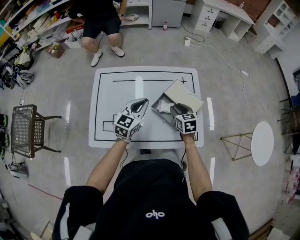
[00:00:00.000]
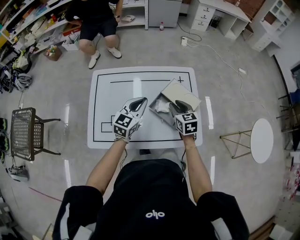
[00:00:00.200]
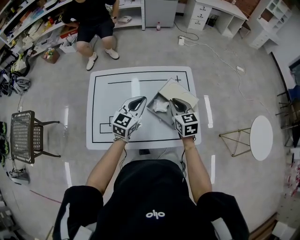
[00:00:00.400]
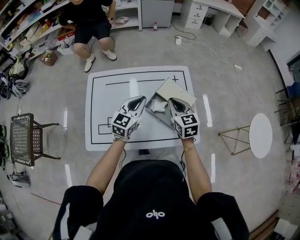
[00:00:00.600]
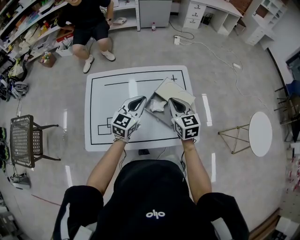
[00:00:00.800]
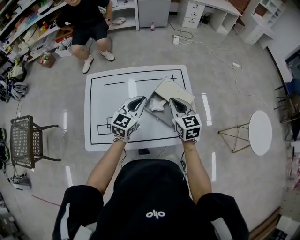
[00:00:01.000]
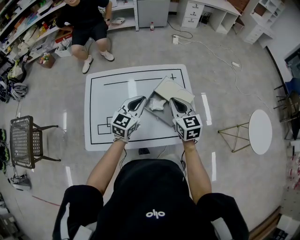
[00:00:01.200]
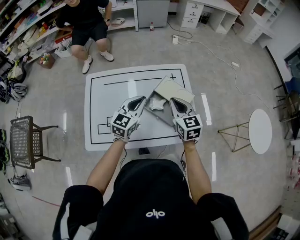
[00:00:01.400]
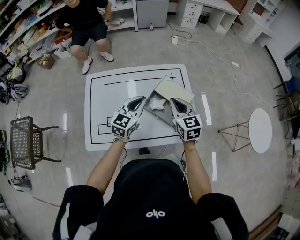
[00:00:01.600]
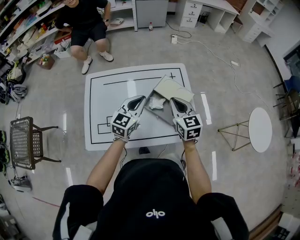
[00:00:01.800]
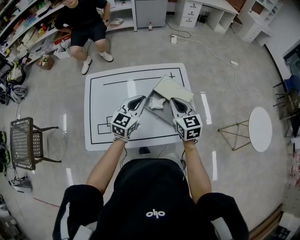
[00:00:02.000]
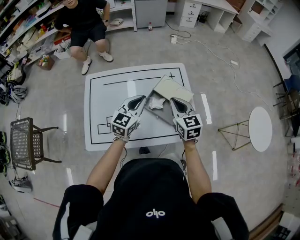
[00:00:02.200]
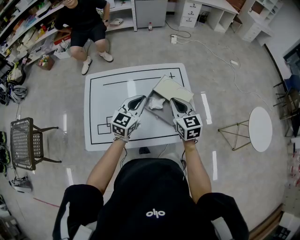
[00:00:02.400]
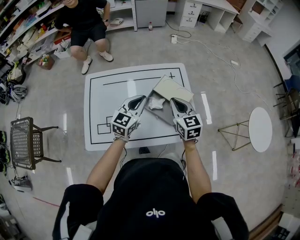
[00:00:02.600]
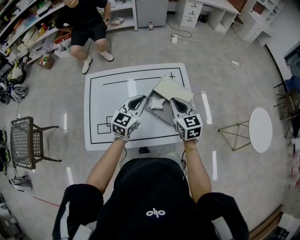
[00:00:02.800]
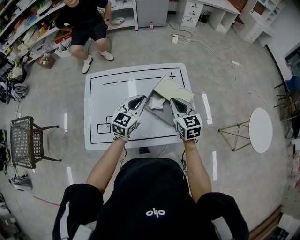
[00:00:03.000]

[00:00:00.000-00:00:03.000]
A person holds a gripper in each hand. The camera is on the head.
00:00:00.000 to 00:00:01.600: The right gripper shifts roughly 15 cm upward, and closes. The left gripper moves about 5 cm.
00:00:01.600 to 00:00:03.000: The two grippers keep their place.

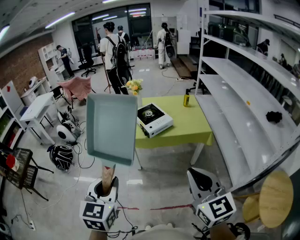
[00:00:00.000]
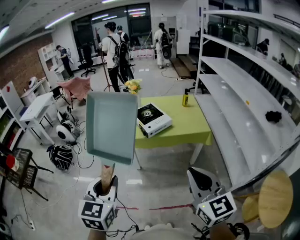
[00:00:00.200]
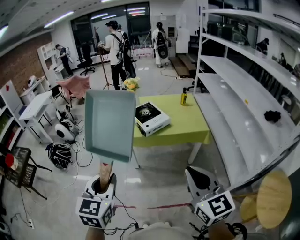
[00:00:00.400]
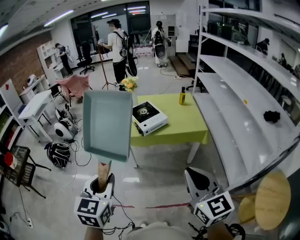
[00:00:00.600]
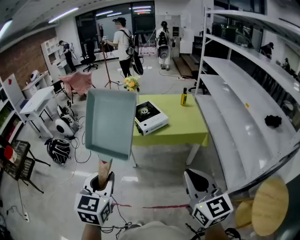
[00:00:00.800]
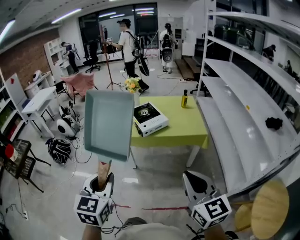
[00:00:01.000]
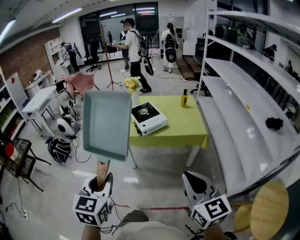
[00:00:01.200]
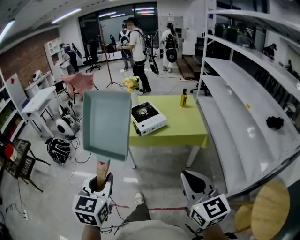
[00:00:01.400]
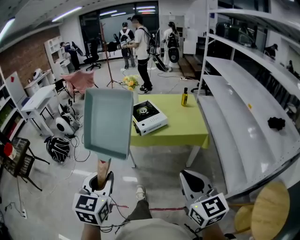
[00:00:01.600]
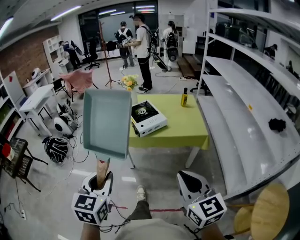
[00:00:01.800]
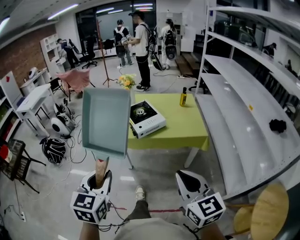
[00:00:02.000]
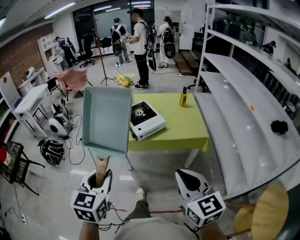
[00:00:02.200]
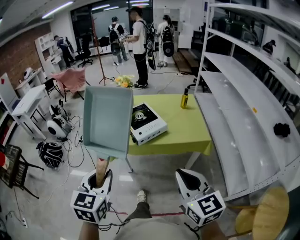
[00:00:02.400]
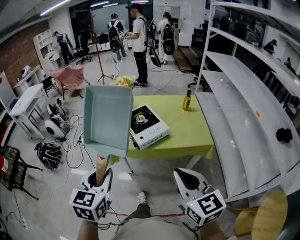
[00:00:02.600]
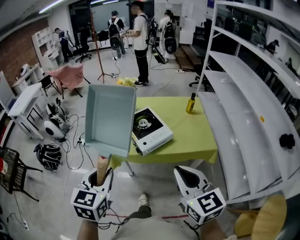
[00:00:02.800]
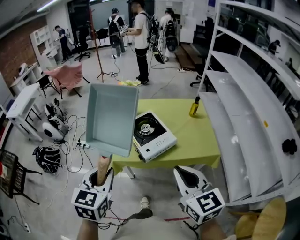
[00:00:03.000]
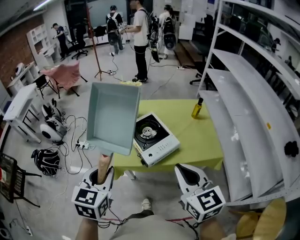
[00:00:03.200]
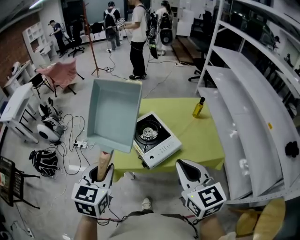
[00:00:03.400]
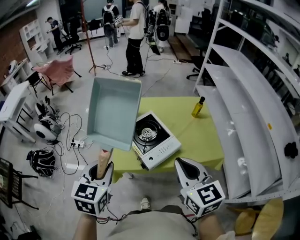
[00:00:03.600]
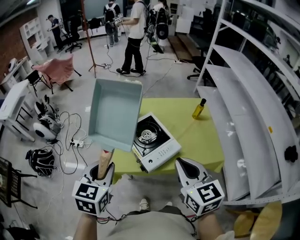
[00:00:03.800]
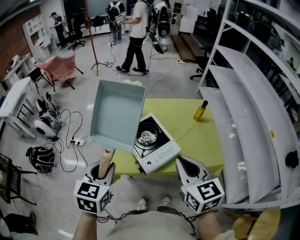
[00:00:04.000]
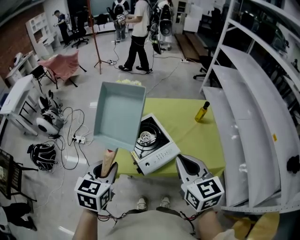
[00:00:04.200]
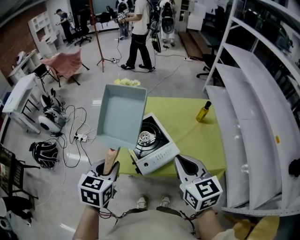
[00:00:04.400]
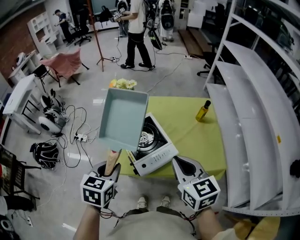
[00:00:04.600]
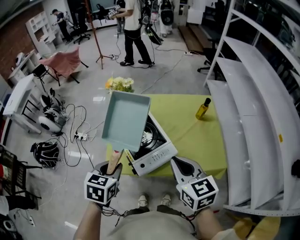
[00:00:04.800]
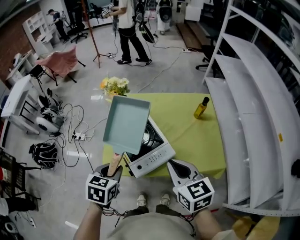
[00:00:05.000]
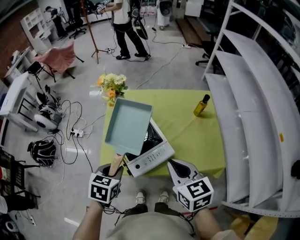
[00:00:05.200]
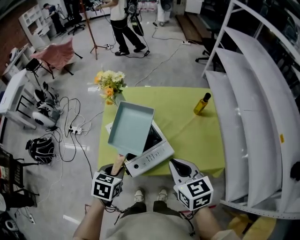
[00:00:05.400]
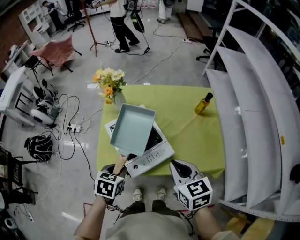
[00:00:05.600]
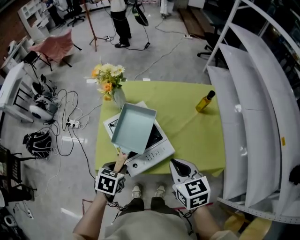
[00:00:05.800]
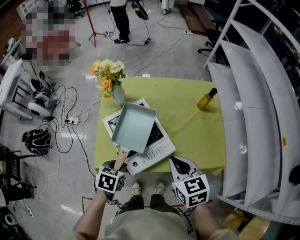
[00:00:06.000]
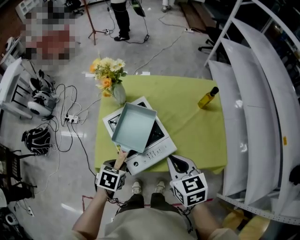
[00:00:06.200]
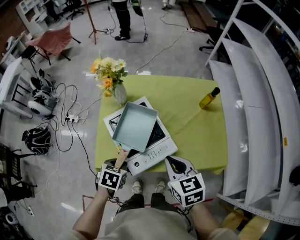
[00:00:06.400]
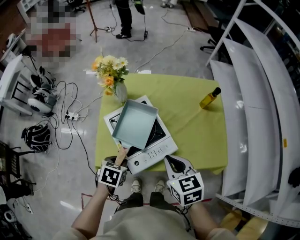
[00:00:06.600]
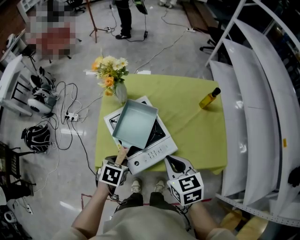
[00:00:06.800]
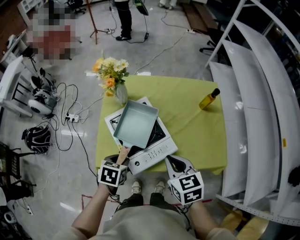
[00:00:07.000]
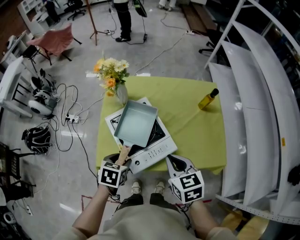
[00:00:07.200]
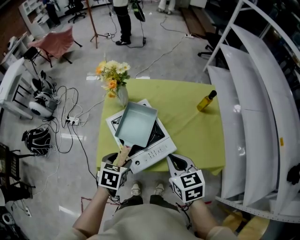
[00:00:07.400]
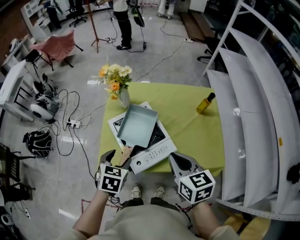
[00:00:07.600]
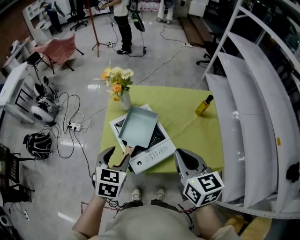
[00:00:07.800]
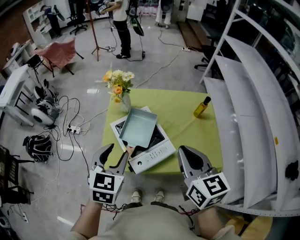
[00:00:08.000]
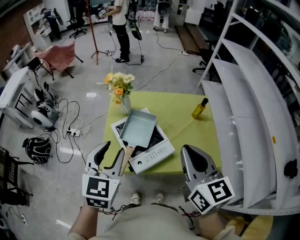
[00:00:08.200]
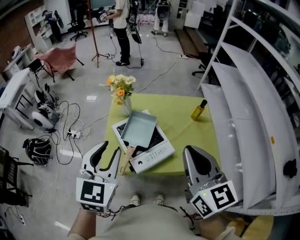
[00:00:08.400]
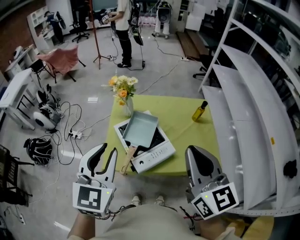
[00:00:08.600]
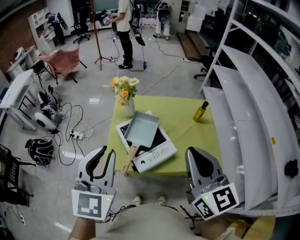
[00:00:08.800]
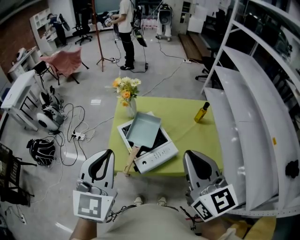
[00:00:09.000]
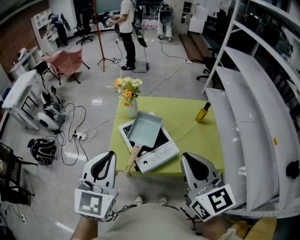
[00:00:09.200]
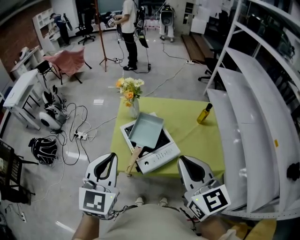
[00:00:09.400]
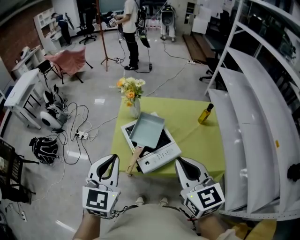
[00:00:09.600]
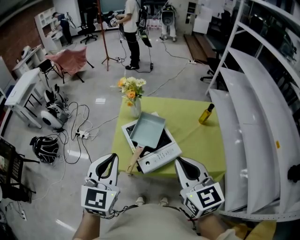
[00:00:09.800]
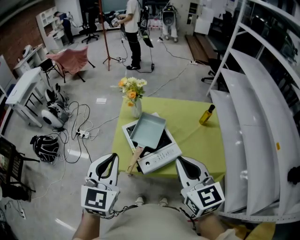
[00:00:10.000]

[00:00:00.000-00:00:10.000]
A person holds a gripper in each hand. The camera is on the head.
00:00:00.000 to 00:00:01.400: Both grippers travel together to the right, roughly 5 cm.
00:00:01.400 to 00:00:02.800: The two grippers go approximately 30 cm forward.
00:00:02.800 to 00:00:04.200: Both grippers move forward, approximately 25 cm.
00:00:04.200 to 00:00:05.800: The right gripper goes some 15 cm downward and forward. Meanwhile the left gripper moves downward, about 20 cm, and swivels roughly 30 degrees.
00:00:05.800 to 00:00:07.200: The left gripper opens up.
00:00:07.200 to 00:00:08.600: Both grippers travel together upward, some 30 cm. The left gripper points its fingers some 50 degrees further upward, and closes its fingers. The right gripper angles its fingers upward, by about 40 degrees.
00:00:08.600 to 00:00:10.000: The right gripper shifts about 10 cm downward, while the left gripper closes.

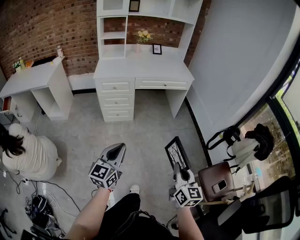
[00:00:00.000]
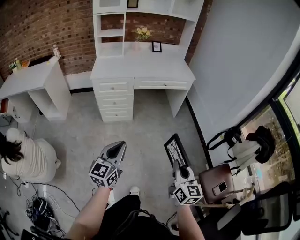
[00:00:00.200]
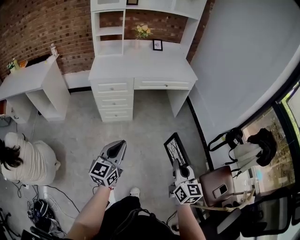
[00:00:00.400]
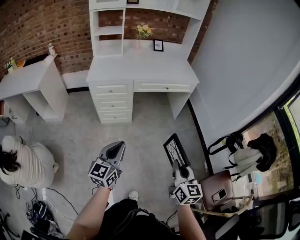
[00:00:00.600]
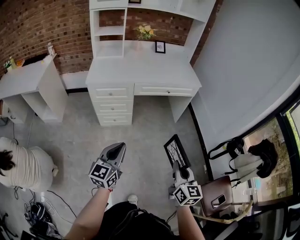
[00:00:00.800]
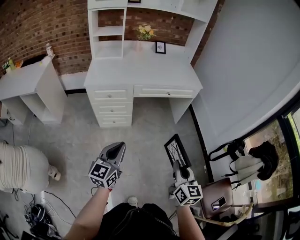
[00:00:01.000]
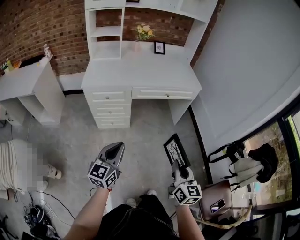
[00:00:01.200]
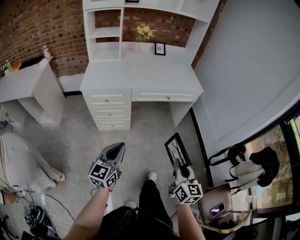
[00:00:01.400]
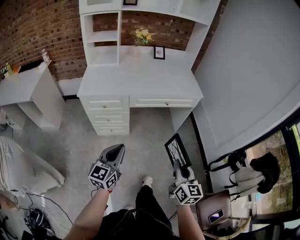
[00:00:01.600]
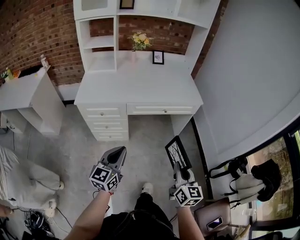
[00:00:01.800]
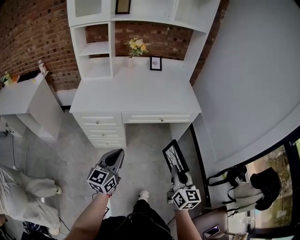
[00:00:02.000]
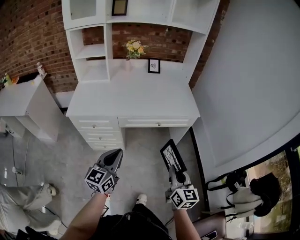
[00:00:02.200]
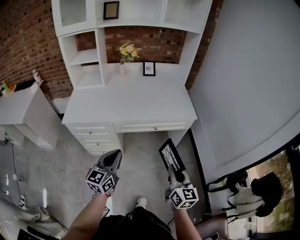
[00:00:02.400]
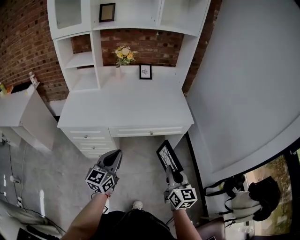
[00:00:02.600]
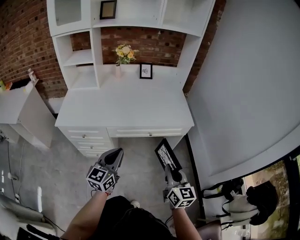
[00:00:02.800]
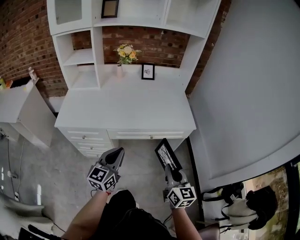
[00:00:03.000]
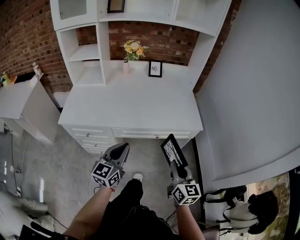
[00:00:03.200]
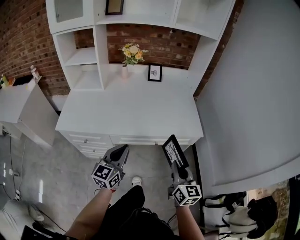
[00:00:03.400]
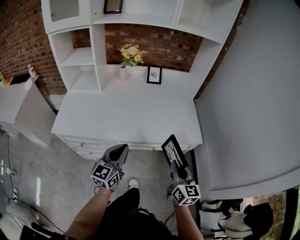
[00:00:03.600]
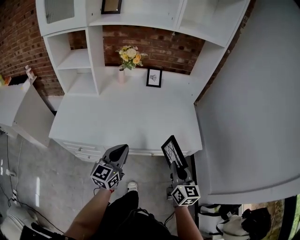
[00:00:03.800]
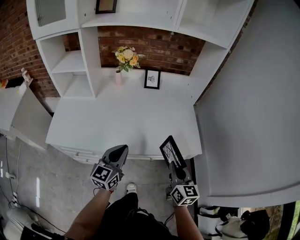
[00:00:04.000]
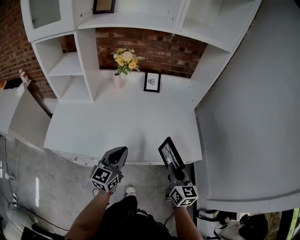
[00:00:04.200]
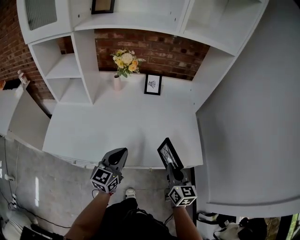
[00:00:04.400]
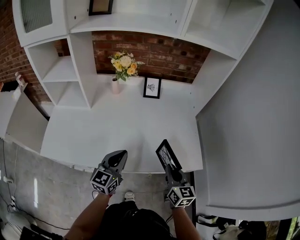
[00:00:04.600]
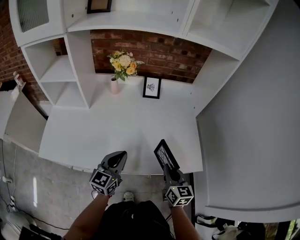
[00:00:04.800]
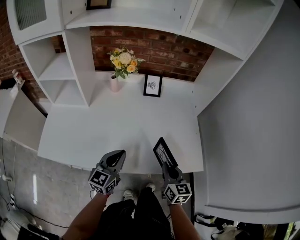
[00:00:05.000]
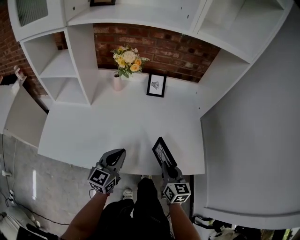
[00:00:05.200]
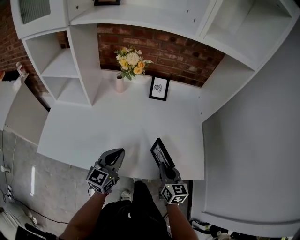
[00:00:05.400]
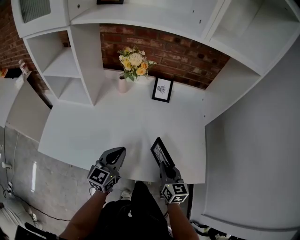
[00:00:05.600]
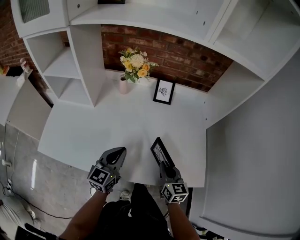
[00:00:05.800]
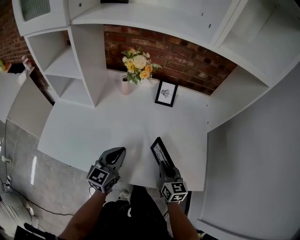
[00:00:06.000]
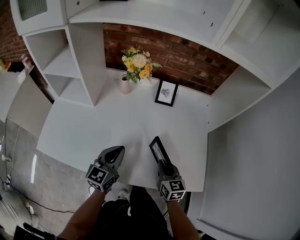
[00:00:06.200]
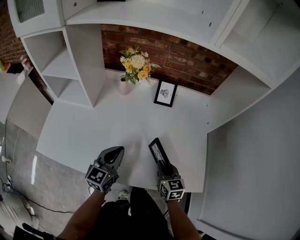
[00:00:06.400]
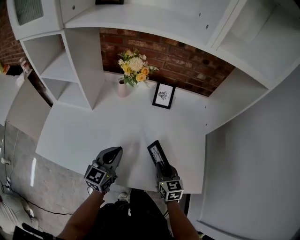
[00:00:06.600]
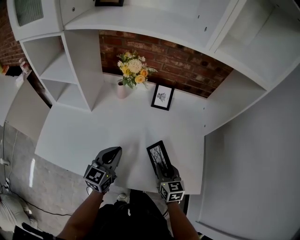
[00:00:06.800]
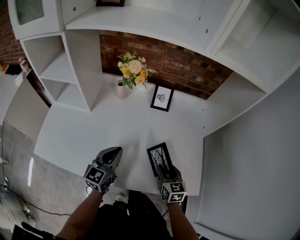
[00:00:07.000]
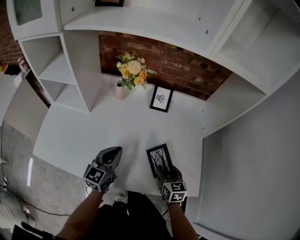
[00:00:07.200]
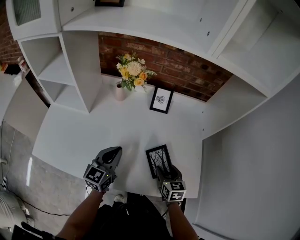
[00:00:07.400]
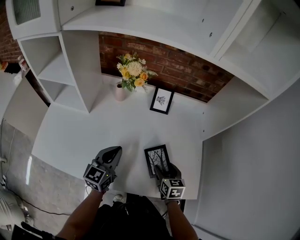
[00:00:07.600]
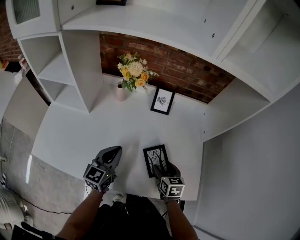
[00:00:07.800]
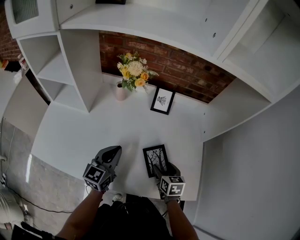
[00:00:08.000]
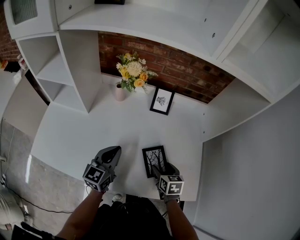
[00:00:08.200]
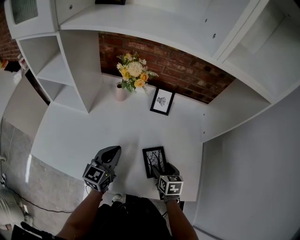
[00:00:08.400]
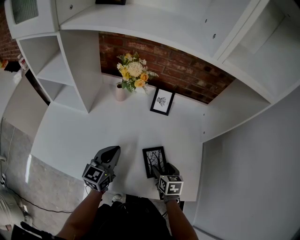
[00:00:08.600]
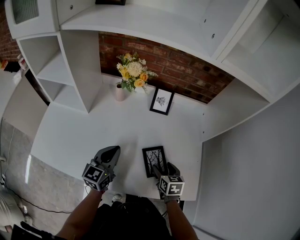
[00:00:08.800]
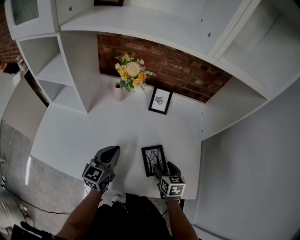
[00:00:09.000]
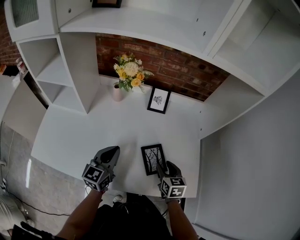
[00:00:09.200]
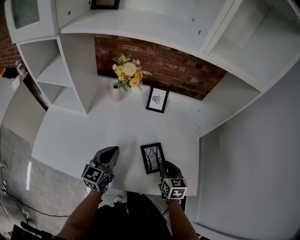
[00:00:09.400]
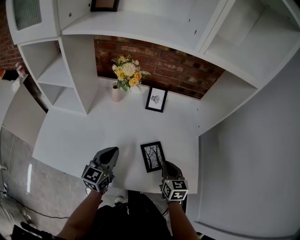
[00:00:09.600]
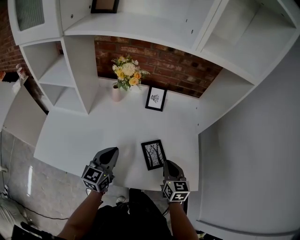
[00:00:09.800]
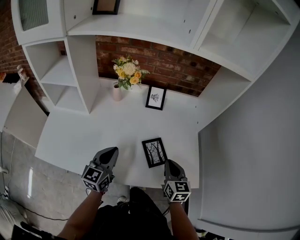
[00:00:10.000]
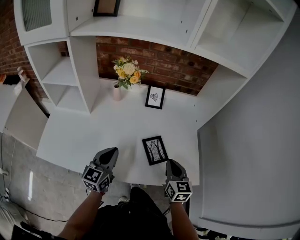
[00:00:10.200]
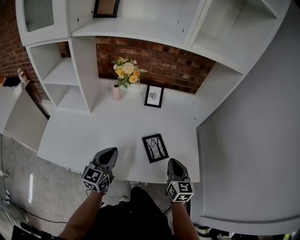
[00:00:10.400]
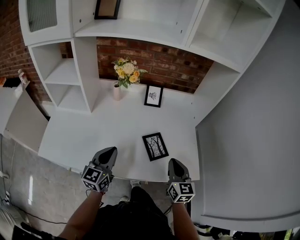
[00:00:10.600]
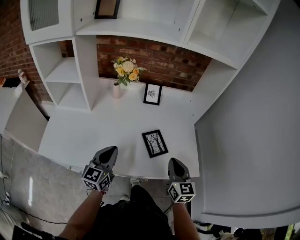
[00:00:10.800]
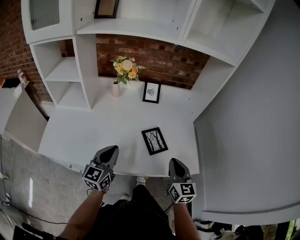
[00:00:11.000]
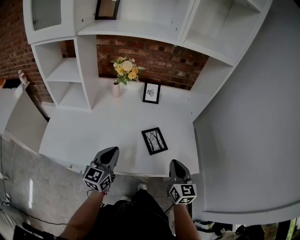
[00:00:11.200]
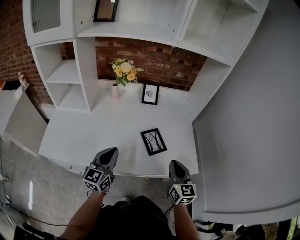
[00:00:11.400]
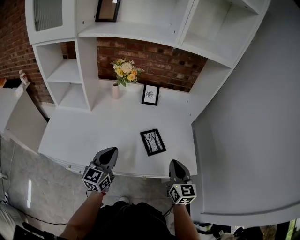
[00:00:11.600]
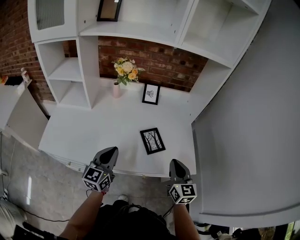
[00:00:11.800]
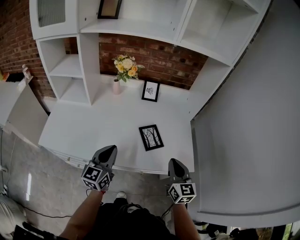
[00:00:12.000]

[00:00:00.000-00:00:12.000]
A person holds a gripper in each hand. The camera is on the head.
00:00:00.000 to 00:00:01.600: The two grippers go some 30 cm forward.
00:00:01.600 to 00:00:03.000: Both grippers travel together forward, about 25 cm.
00:00:03.000 to 00:00:04.400: Both grippers move forward, roughly 25 cm.
00:00:04.400 to 00:00:06.000: The left gripper is displaced forward by some 10 cm. Meanwhile the right gripper heads forward, downward and to the left, covering approximately 15 cm.
00:00:06.000 to 00:00:07.600: The right gripper moves some 5 cm, and opens up.
00:00:07.600 to 00:00:09.000: The grippers move only a little.
00:00:09.000 to 00:00:10.400: The left gripper goes roughly 10 cm backward, while the right gripper shifts approximately 15 cm upward and backward, rotates approximately 30 degrees, and closes its fingers.
00:00:10.400 to 00:00:12.000: Both grippers move backward, approximately 5 cm.
